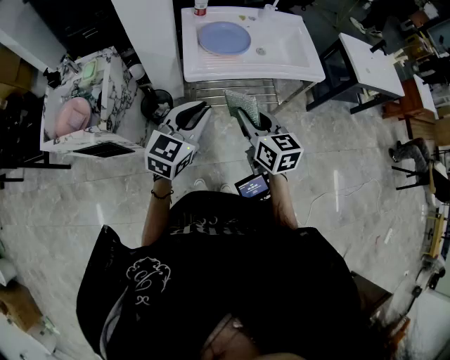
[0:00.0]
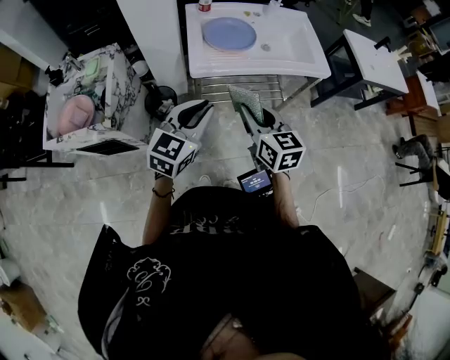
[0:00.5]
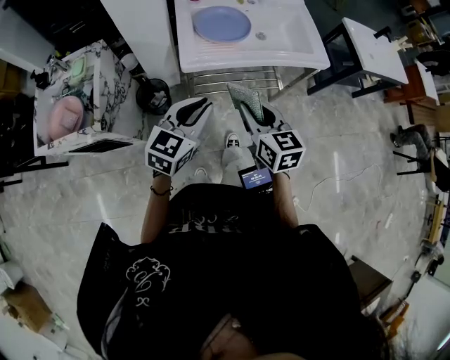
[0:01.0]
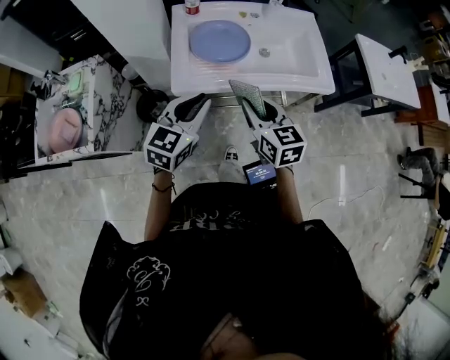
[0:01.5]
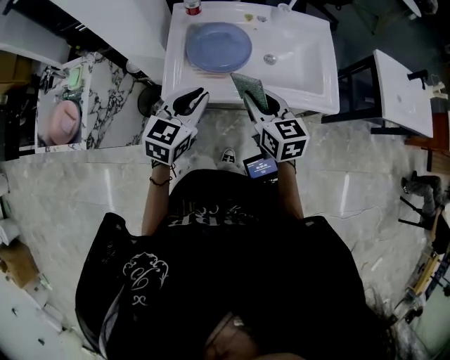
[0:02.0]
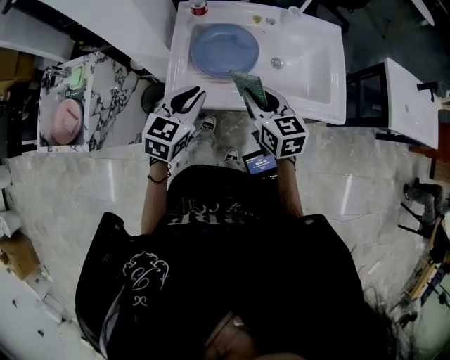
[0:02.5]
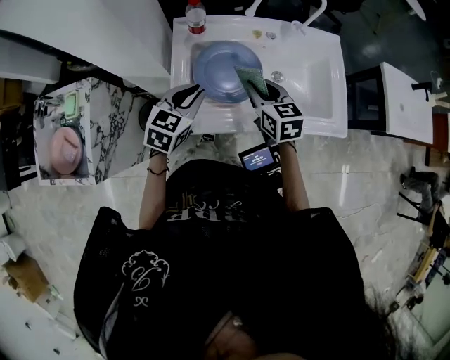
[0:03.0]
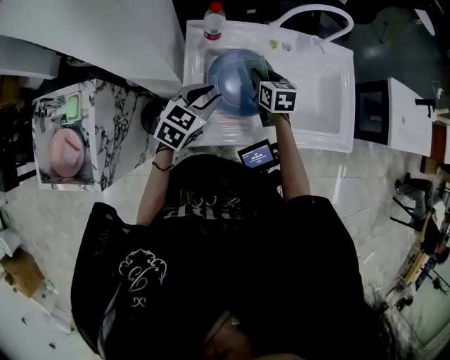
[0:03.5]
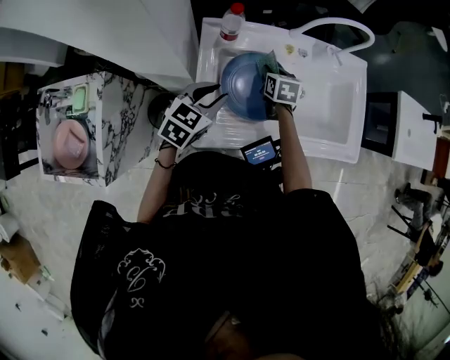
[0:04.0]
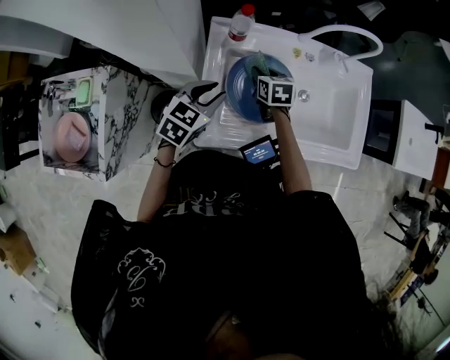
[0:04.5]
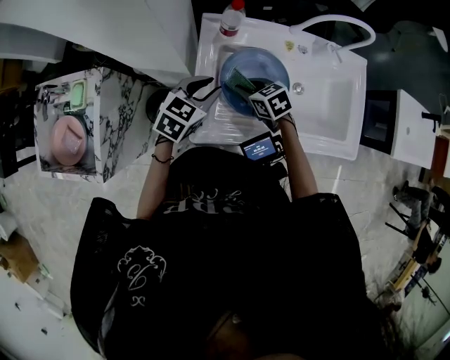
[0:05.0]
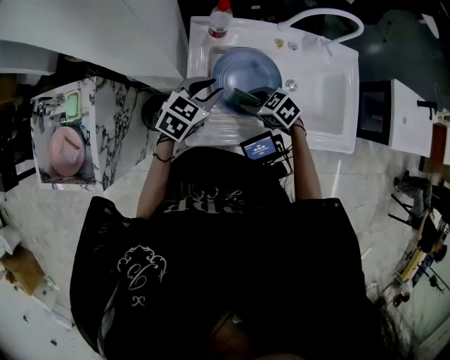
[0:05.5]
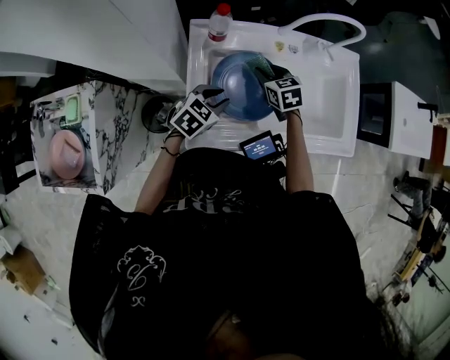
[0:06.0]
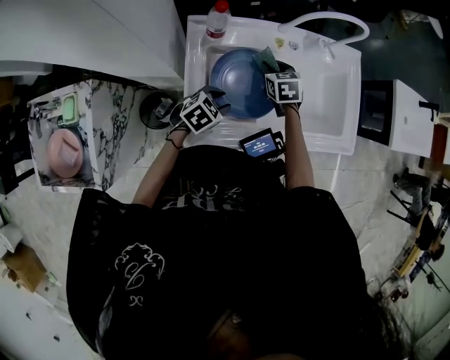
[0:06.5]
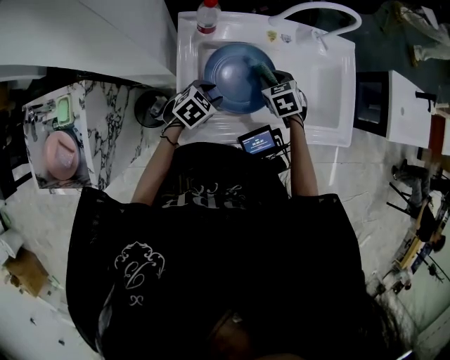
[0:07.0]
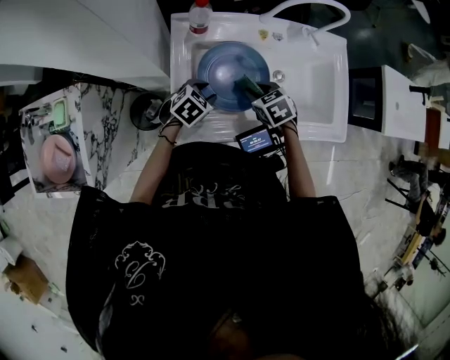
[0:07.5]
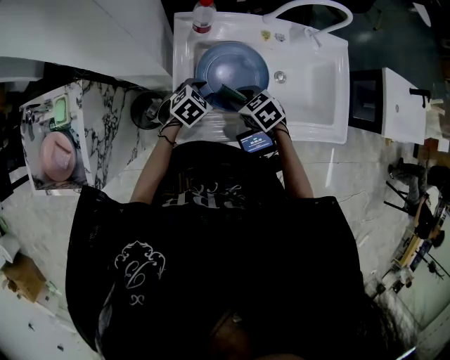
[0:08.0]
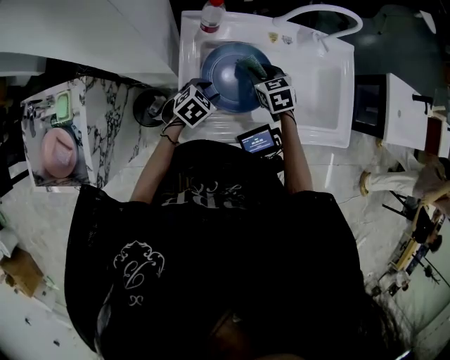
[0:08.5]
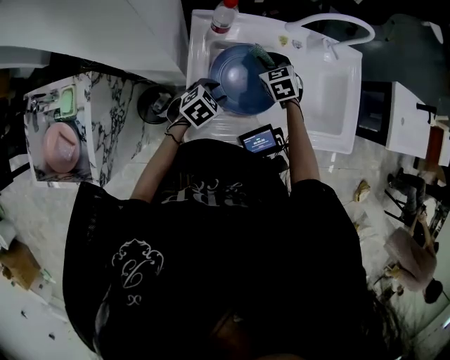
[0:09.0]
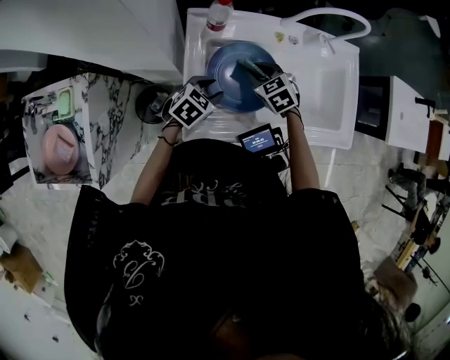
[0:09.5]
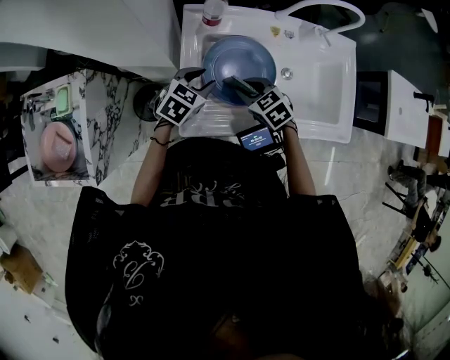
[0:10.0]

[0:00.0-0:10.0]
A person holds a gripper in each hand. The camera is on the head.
0:00.0 to 0:02.0: The grippers both shift forward by about 25 cm.
0:02.0 to 0:04.0: The right gripper shifts roughly 35 cm forward and downward, and changes its angle by some 30 degrees, while the left gripper heads forward, to the left and downward, covering about 25 cm.
0:04.0 to 0:06.0: The left gripper shifts some 5 cm downward. The right gripper rotates roughly 20 degrees.
0:06.0 to 0:08.0: The right gripper ends up approximately 15 cm from where it was, and swivels approximately 20 degrees; the left gripper shifts roughly 5 cm downward.
0:08.0 to 0:10.0: The right gripper reaches some 15 cm forward, then returns. Meanwhile the left gripper moves upward, some 5 cm.

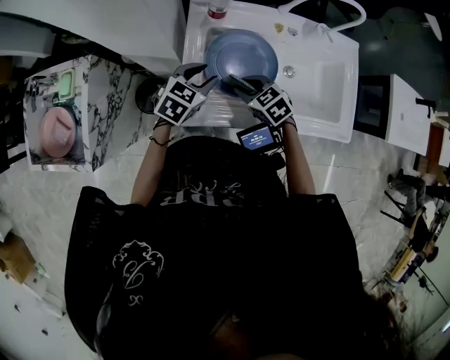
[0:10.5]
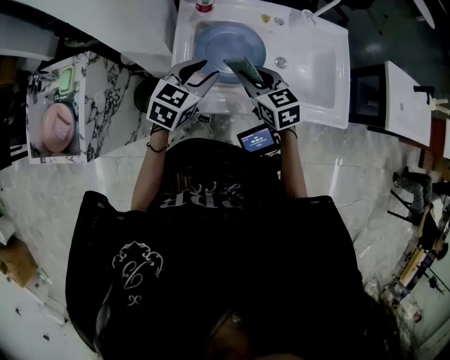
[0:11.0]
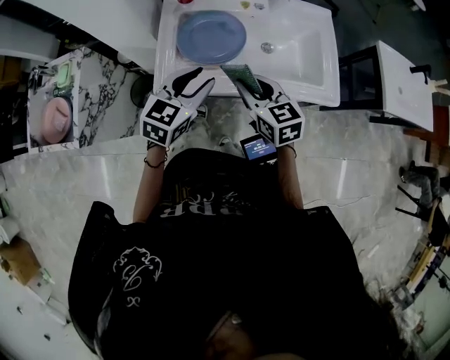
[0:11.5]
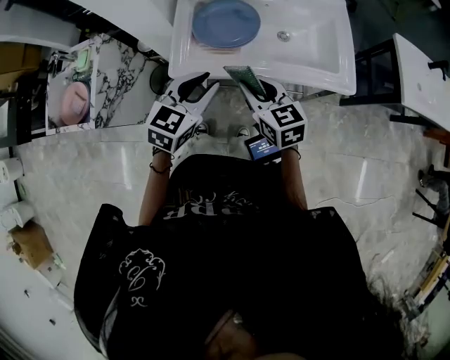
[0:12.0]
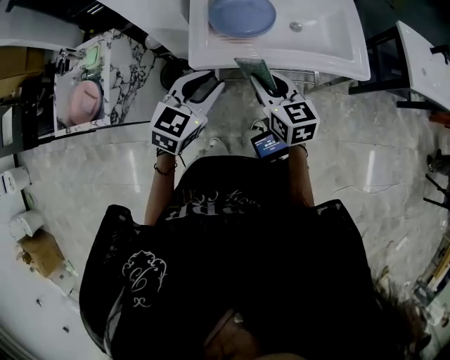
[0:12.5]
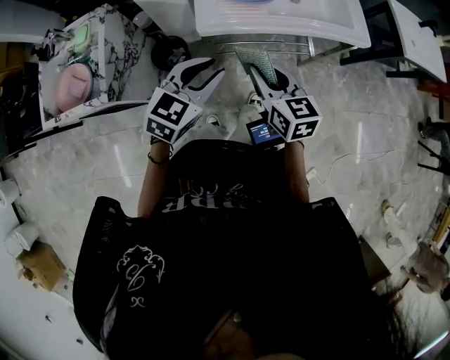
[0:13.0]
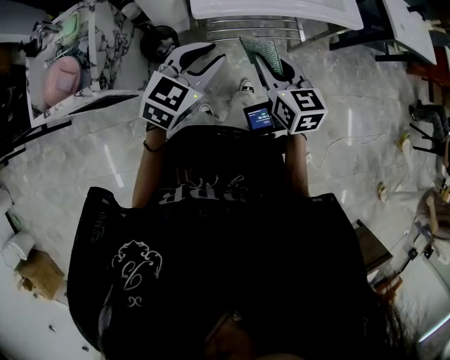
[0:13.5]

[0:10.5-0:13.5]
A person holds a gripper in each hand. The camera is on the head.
0:10.5 to 0:12.0: The left gripper goes about 25 cm backward and upward; the right gripper heads backward, upward and to the right, covering about 25 cm, and rotates some 30 degrees.
0:12.0 to 0:13.5: The two grippers go roughly 20 cm backward and to the left.

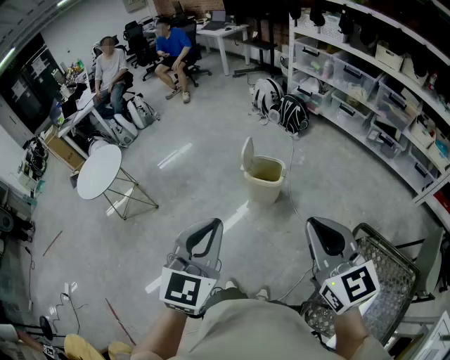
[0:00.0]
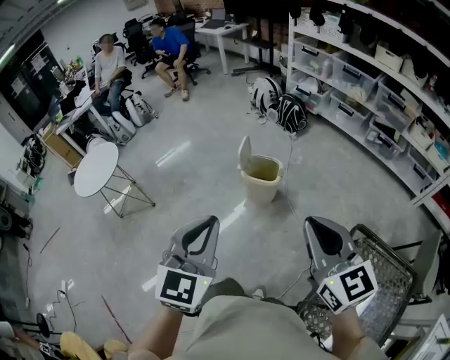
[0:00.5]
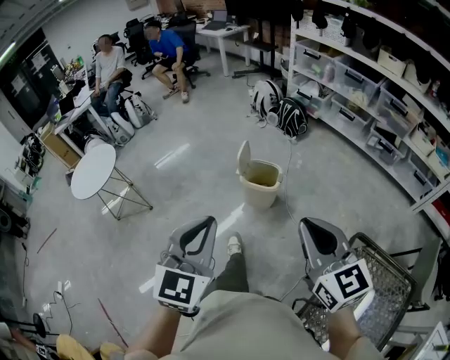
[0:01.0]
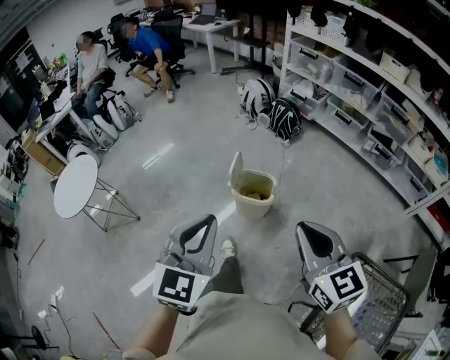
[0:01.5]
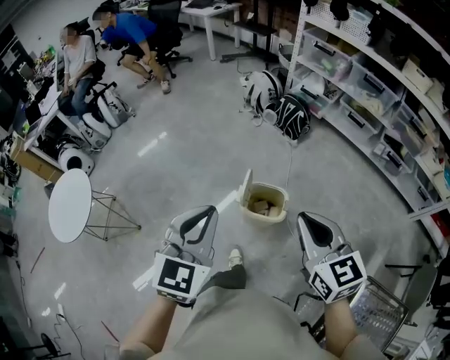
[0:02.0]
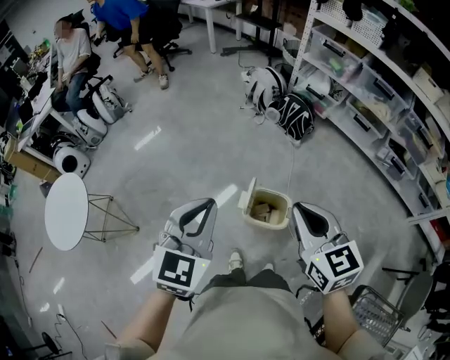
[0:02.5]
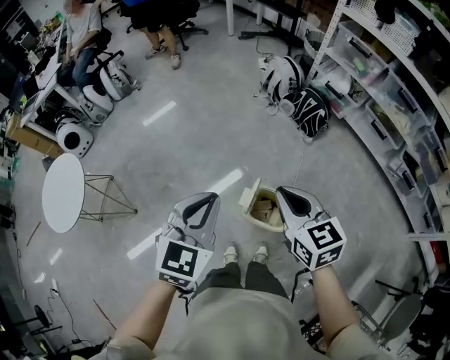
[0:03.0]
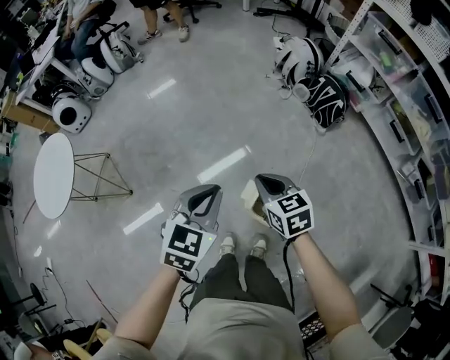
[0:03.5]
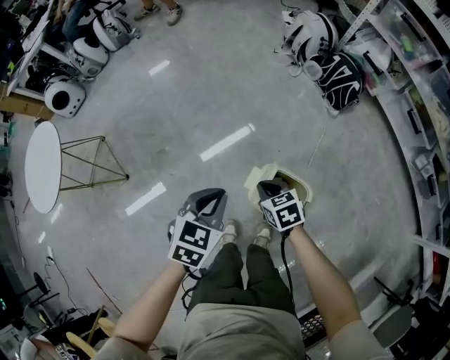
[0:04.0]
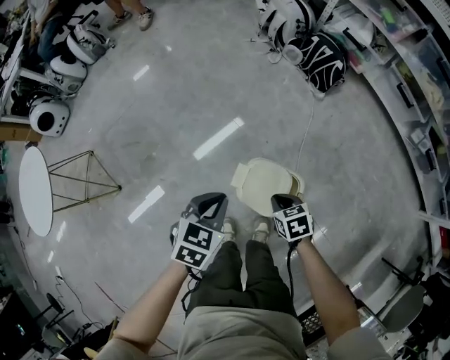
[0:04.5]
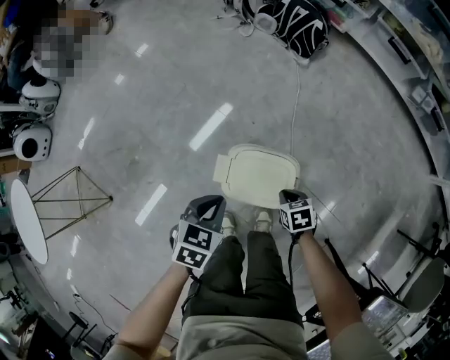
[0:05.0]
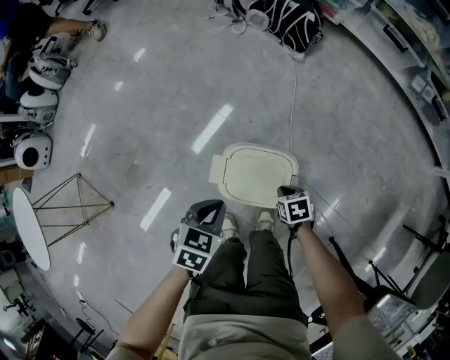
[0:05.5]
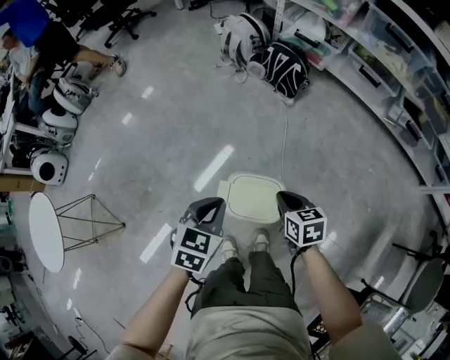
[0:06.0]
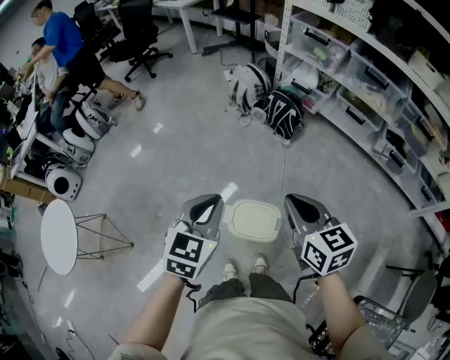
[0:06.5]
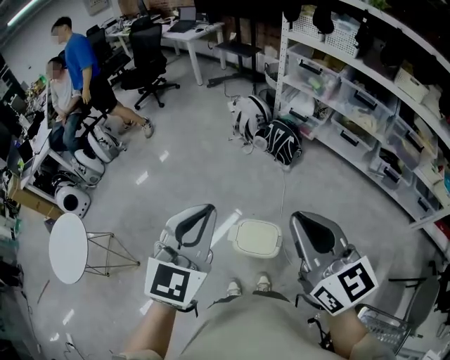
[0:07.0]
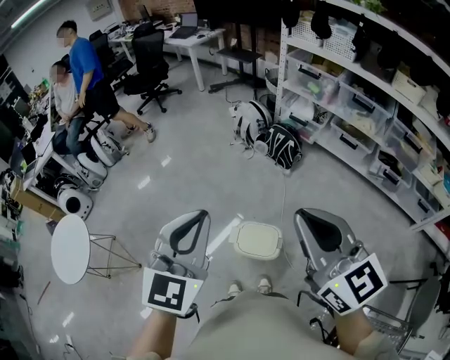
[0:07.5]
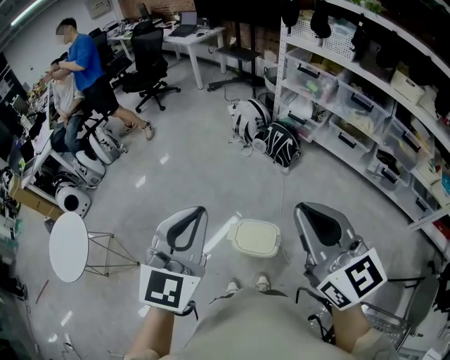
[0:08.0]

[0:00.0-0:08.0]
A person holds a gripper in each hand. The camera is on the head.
0:00.0 to 0:02.0: Both grippers move forward, about 40 cm.
0:02.0 to 0:04.0: The grippers both shift downward and forward by about 50 cm. The left gripper turns by about 30 degrees. Meanwhile the right gripper points its fingers some 40 degrees further downward.
0:04.0 to 0:06.0: The two grippers go some 15 cm to the right. The left gripper moves roughly 20 cm downward and comes back, while the right gripper reaches approximately 20 cm downward, then returns, and rotates about 30 degrees.
0:06.0 to 0:08.0: Both grippers travel together upward, some 50 cm. The left gripper points its fingers about 40 degrees further upward, while the right gripper tips its fingers upward by about 50 degrees.

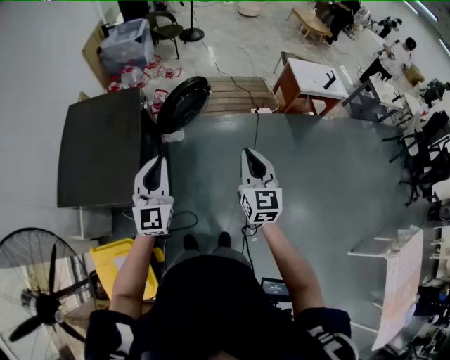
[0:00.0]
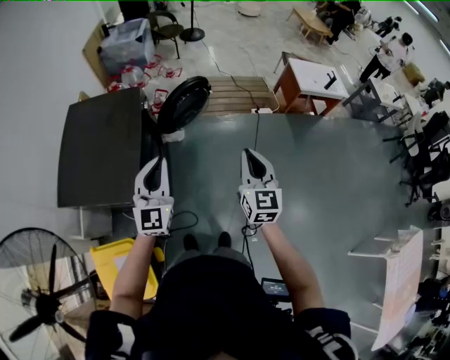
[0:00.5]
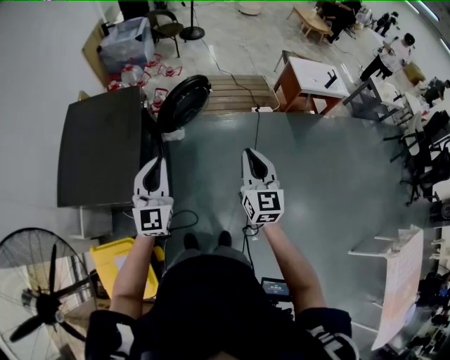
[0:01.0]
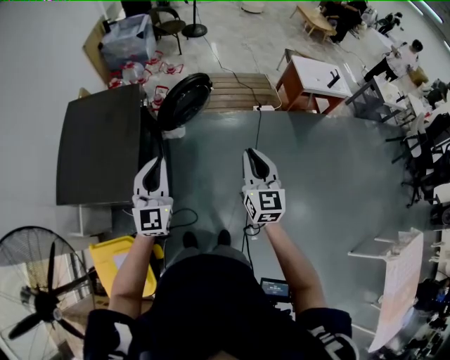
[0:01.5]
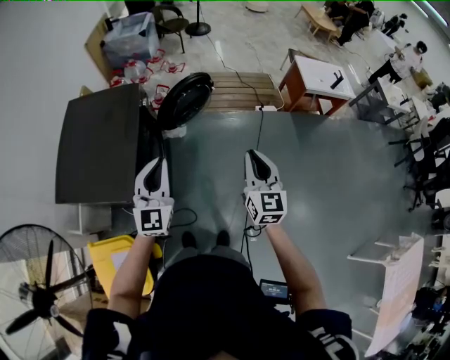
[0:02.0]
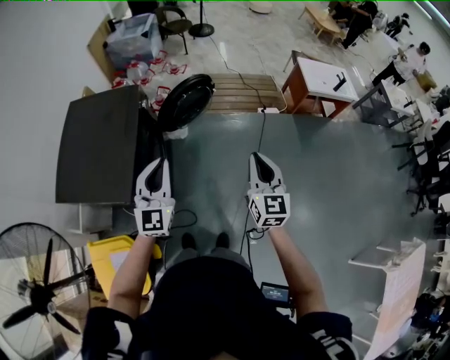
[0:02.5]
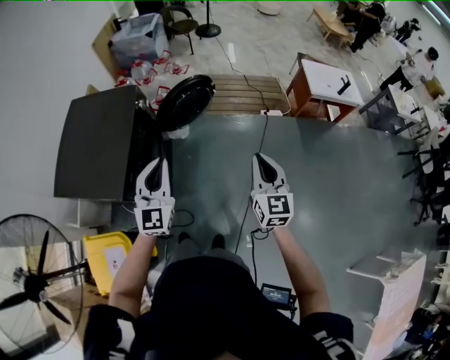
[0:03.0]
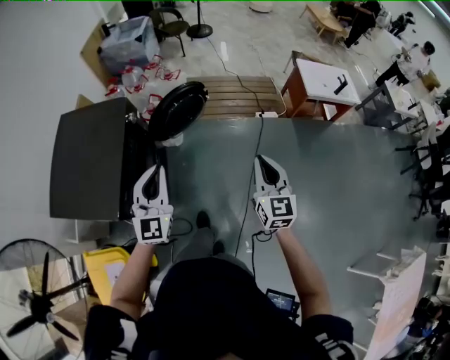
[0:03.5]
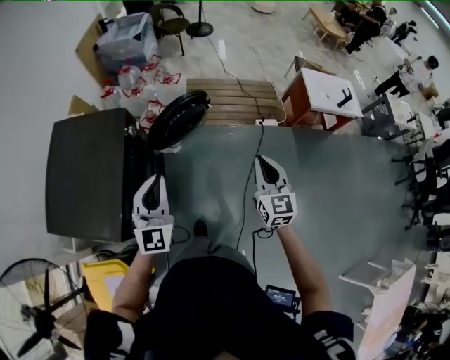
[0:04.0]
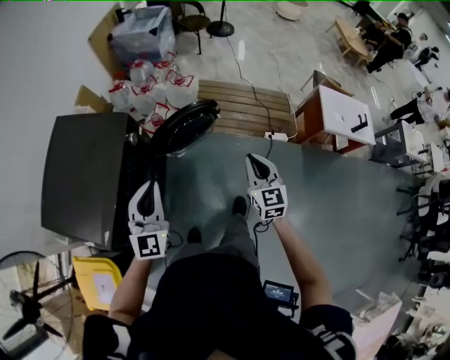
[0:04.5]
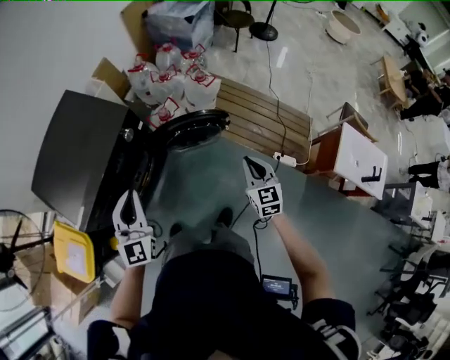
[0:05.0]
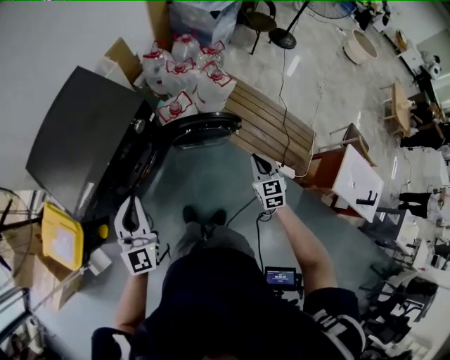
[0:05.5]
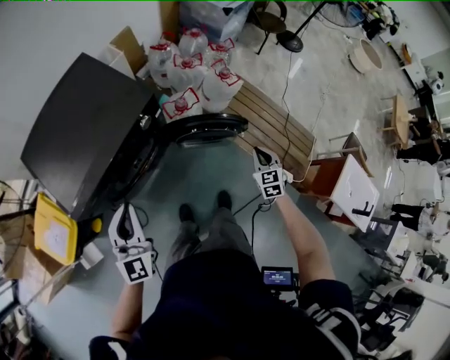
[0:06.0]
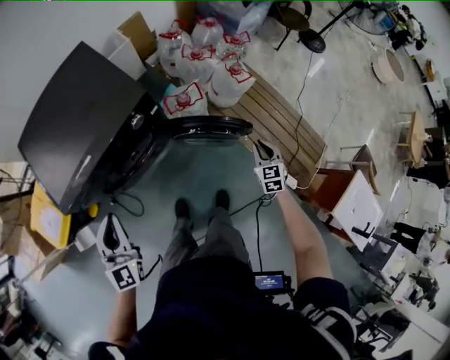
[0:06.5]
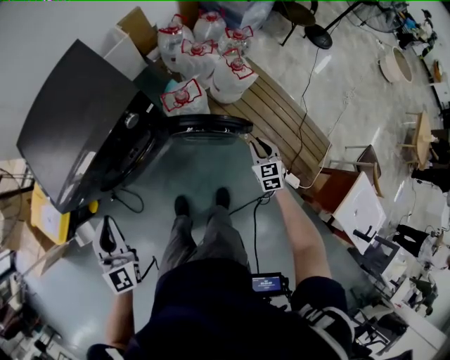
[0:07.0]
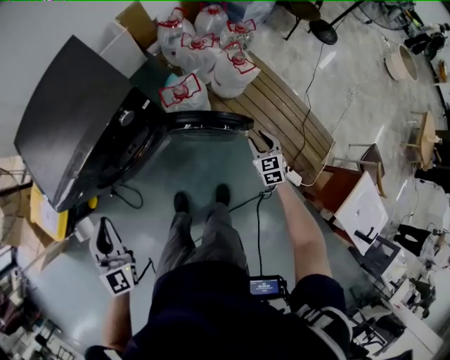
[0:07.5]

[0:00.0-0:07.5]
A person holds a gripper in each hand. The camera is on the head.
0:00.0 to 0:02.0: The grippers make only small movements.
0:02.0 to 0:04.0: The right gripper heads forward and to the right, covering some 20 cm. Meanwhile the left gripper is displaced forward by roughly 15 cm.
0:04.0 to 0:05.5: The right gripper moves roughly 40 cm, and swivels roughly 40 degrees. Meanwhile the left gripper shifts by roughly 10 cm, and swivels roughly 40 degrees.
0:05.5 to 0:07.5: The left gripper goes roughly 5 cm downward, and changes its angle by about 20 degrees. Meanwhile the right gripper moves downward, forward and to the right, approximately 25 cm, and opens.
